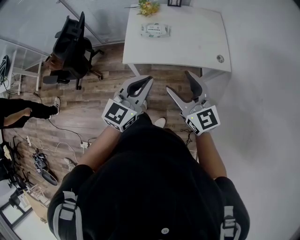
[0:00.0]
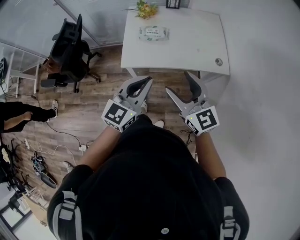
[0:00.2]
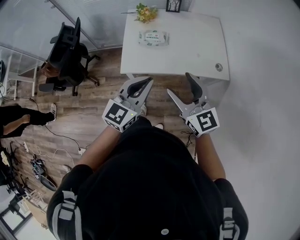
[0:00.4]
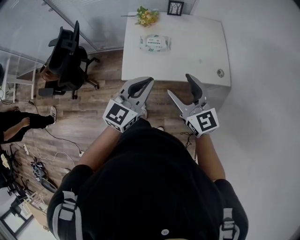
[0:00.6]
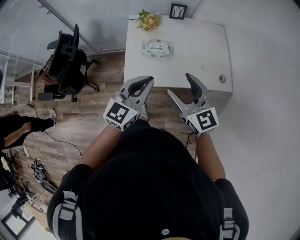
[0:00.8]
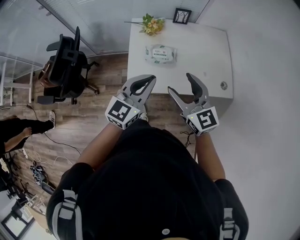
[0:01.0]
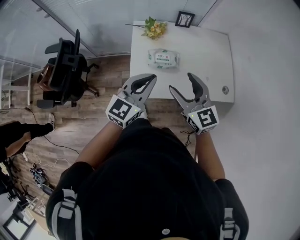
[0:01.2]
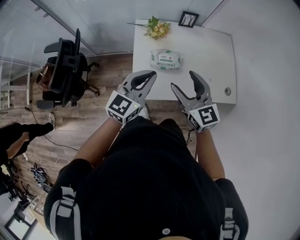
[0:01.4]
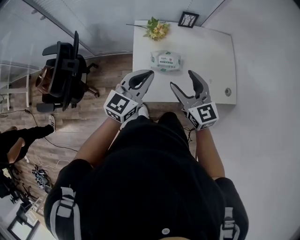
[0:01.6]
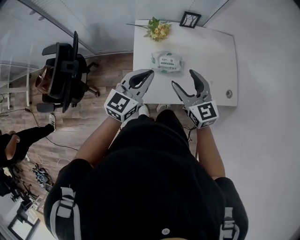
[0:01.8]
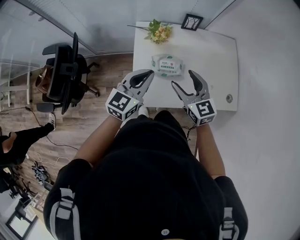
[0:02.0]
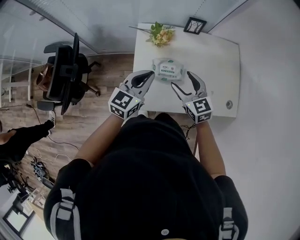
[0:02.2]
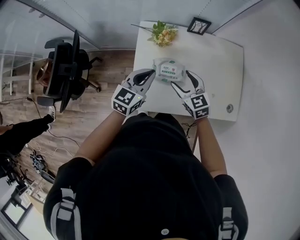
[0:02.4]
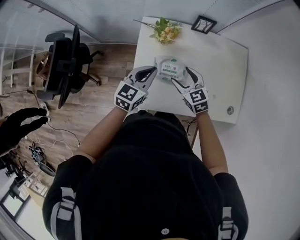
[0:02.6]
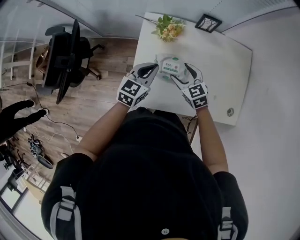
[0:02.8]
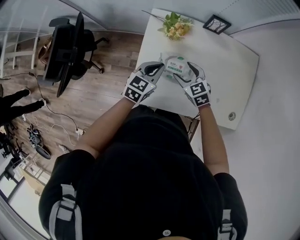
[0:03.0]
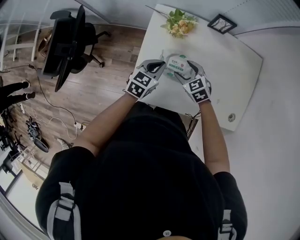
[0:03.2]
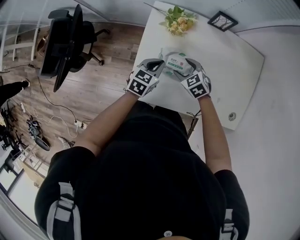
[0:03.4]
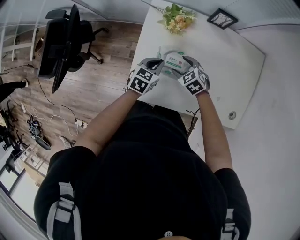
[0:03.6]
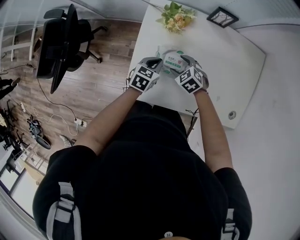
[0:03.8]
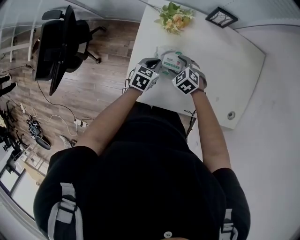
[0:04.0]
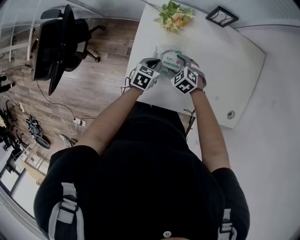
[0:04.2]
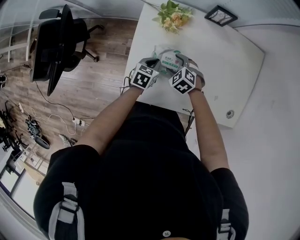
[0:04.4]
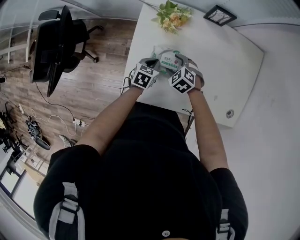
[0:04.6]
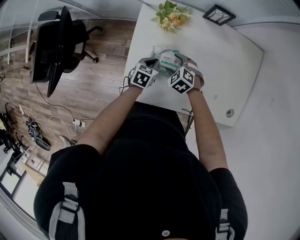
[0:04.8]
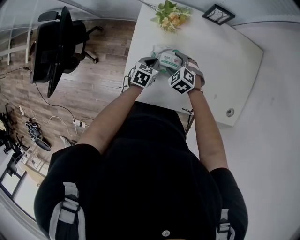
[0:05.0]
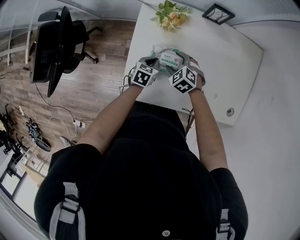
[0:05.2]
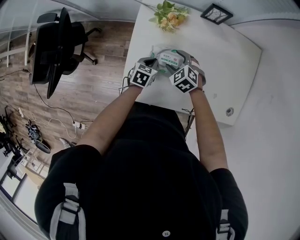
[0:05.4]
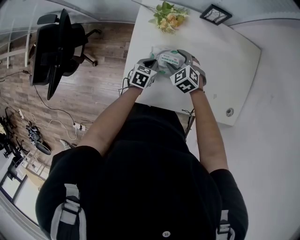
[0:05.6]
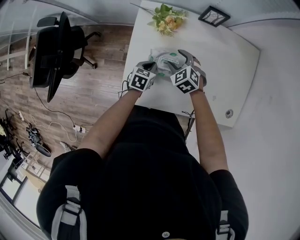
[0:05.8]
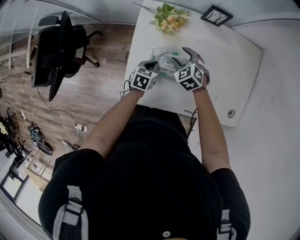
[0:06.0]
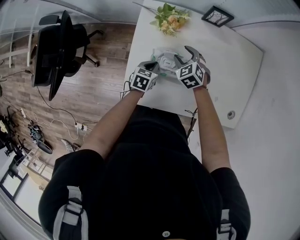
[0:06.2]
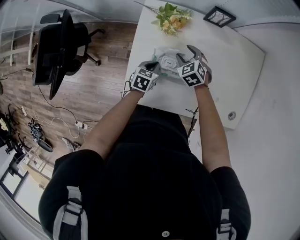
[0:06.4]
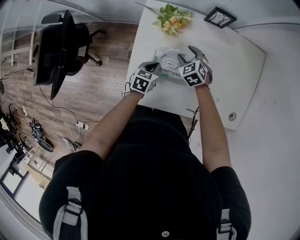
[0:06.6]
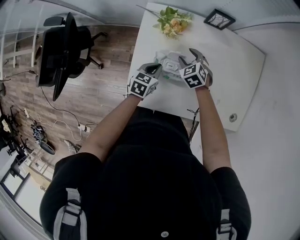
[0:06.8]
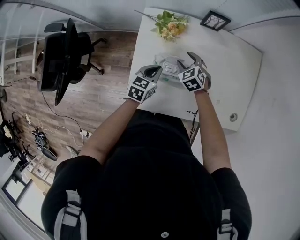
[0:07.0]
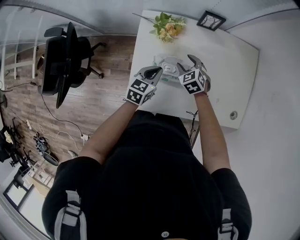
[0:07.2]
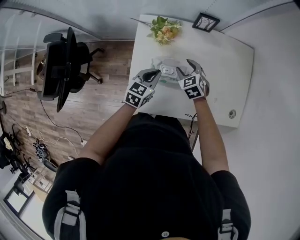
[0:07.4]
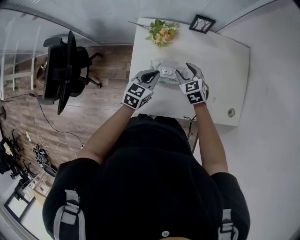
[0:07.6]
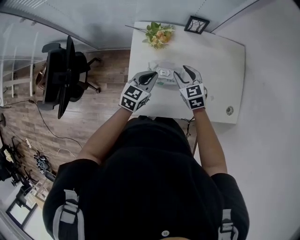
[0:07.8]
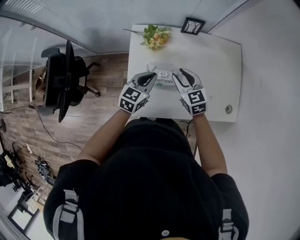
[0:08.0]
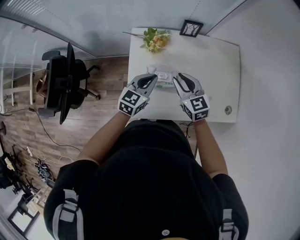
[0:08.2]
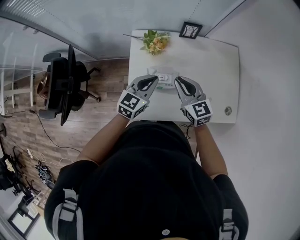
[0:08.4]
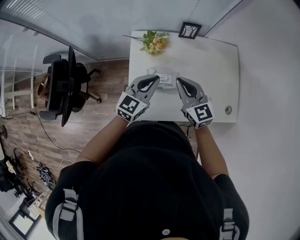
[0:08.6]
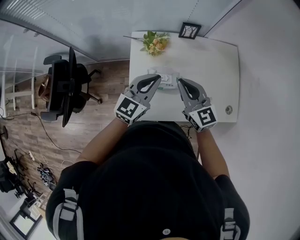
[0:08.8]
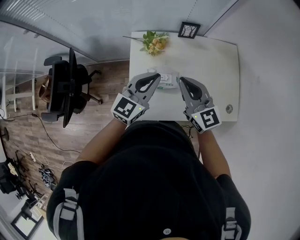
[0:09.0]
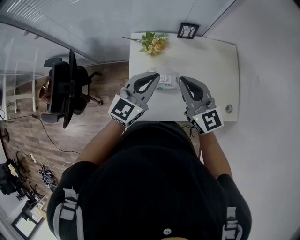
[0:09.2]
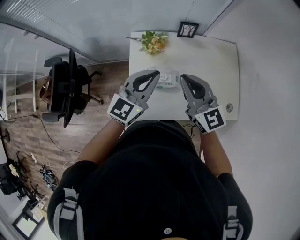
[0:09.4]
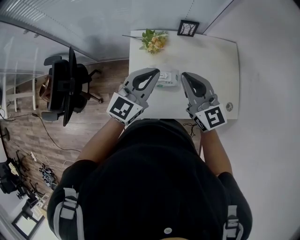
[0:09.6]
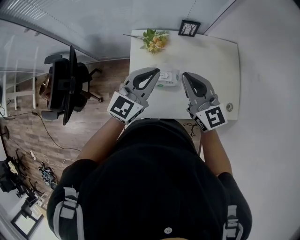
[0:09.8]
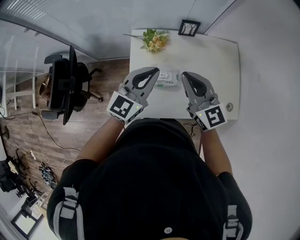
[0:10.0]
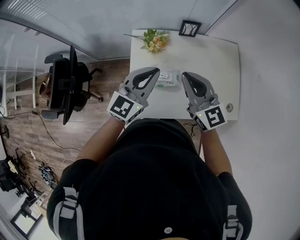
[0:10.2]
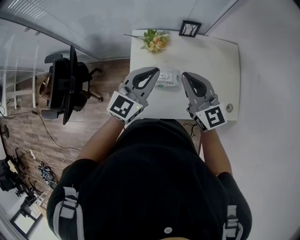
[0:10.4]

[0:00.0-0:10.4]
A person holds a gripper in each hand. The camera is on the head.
0.0 to 1.4 s: The two grippers go roughly 30 cm forward and to the left.
1.4 to 3.0 s: Both grippers move downward and forward, some 30 cm. The right gripper rotates about 30 degrees, while the left gripper swivels some 30 degrees.
3.0 to 4.4 s: Both grippers move downward, approximately 15 cm. The left gripper changes its angle by some 20 degrees. The right gripper changes its angle by some 30 degrees.
4.4 to 6.0 s: The right gripper moves forward, approximately 5 cm.
6.0 to 7.4 s: The left gripper travels upward by about 15 cm, and turns by approximately 20 degrees.
7.4 to 9.0 s: The grippers both shift upward by approximately 25 cm. The left gripper changes its angle by approximately 30 degrees; the right gripper tips its fingers upward by some 40 degrees, and closes.
9.0 to 10.4 s: The grippers move only a little.

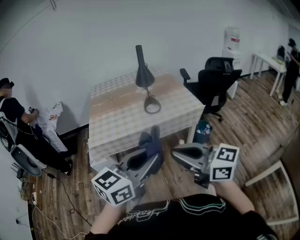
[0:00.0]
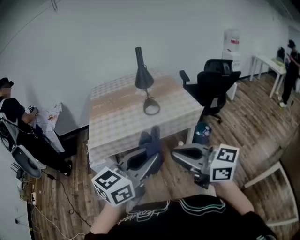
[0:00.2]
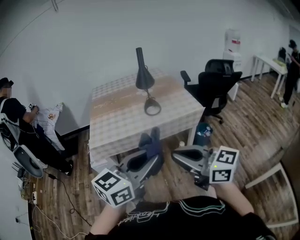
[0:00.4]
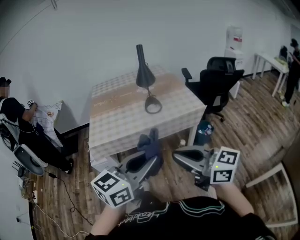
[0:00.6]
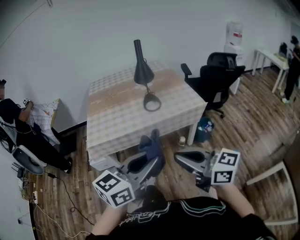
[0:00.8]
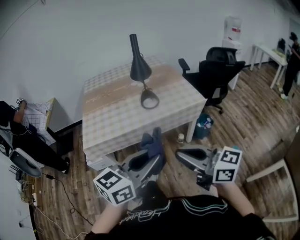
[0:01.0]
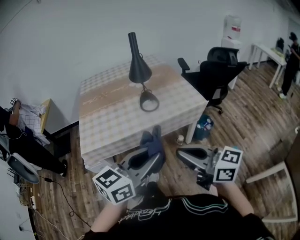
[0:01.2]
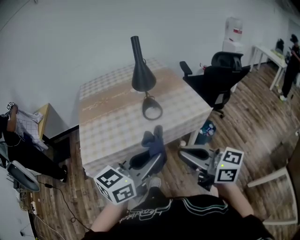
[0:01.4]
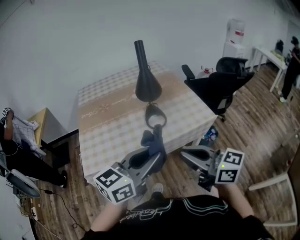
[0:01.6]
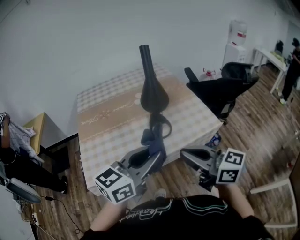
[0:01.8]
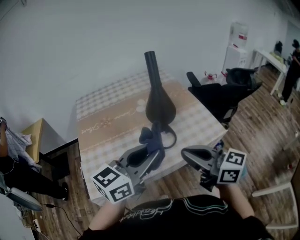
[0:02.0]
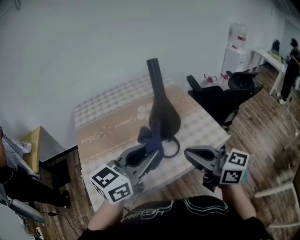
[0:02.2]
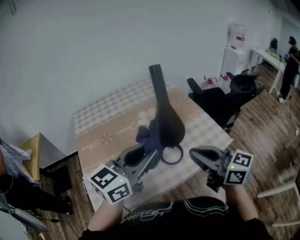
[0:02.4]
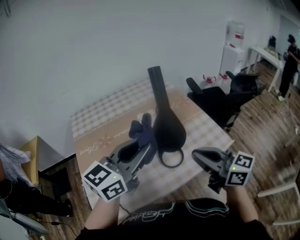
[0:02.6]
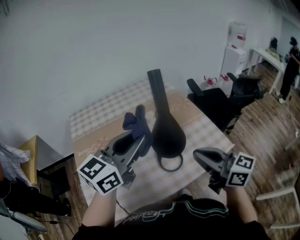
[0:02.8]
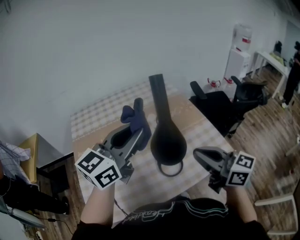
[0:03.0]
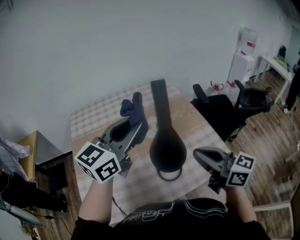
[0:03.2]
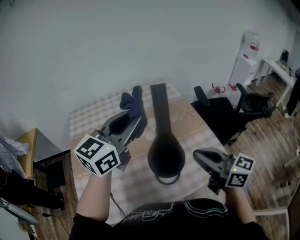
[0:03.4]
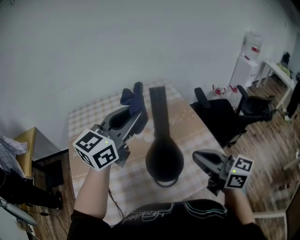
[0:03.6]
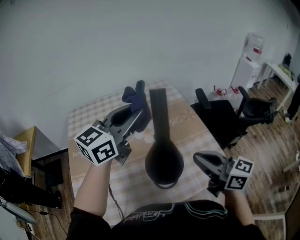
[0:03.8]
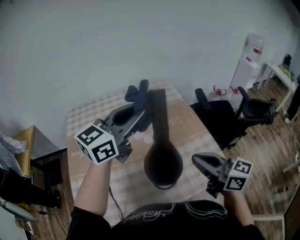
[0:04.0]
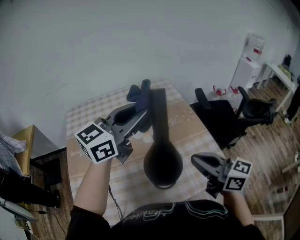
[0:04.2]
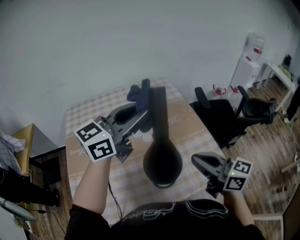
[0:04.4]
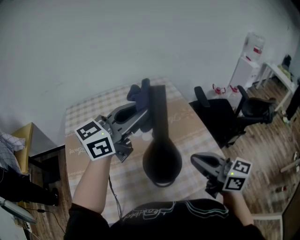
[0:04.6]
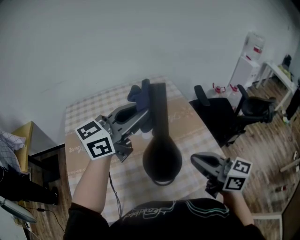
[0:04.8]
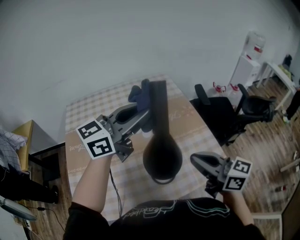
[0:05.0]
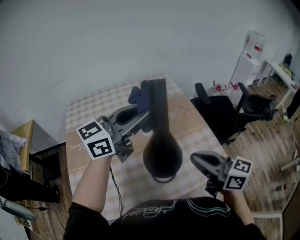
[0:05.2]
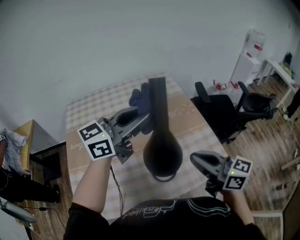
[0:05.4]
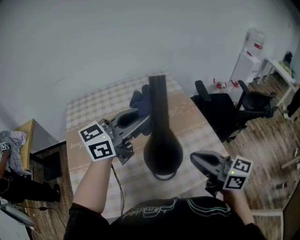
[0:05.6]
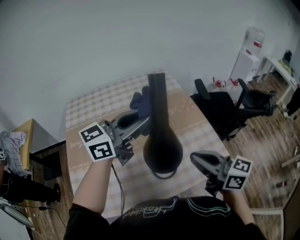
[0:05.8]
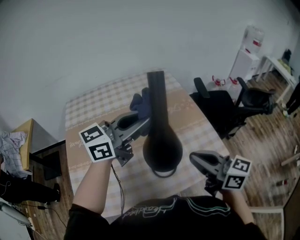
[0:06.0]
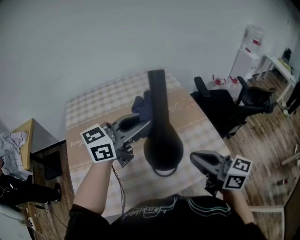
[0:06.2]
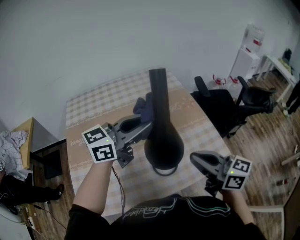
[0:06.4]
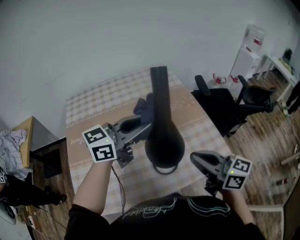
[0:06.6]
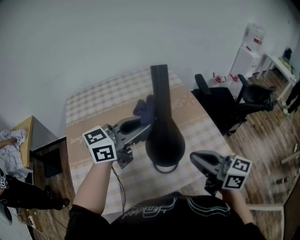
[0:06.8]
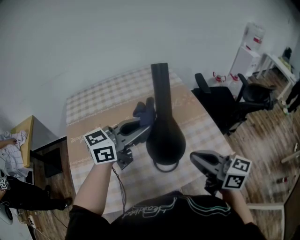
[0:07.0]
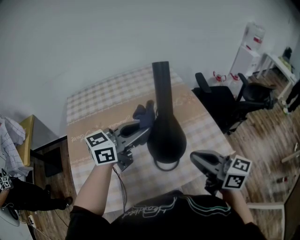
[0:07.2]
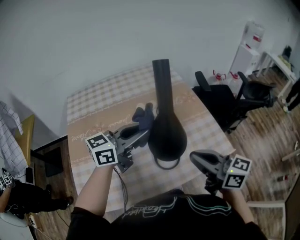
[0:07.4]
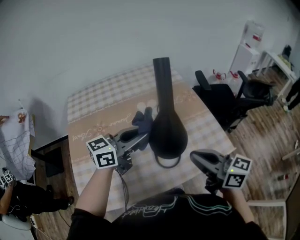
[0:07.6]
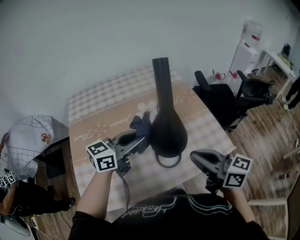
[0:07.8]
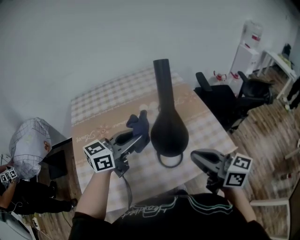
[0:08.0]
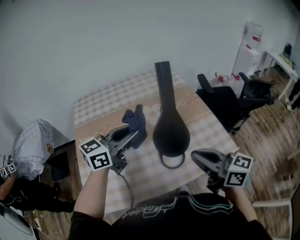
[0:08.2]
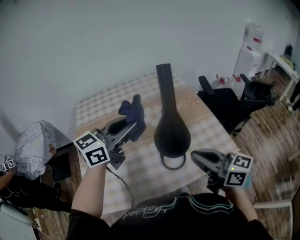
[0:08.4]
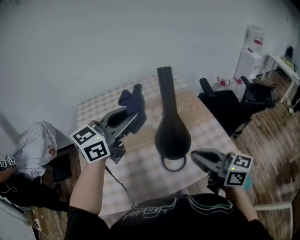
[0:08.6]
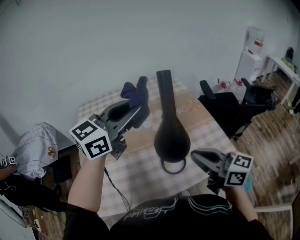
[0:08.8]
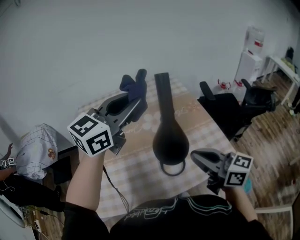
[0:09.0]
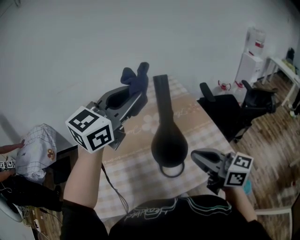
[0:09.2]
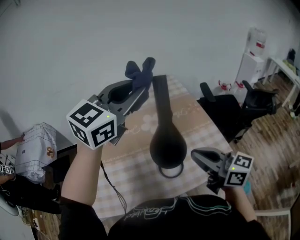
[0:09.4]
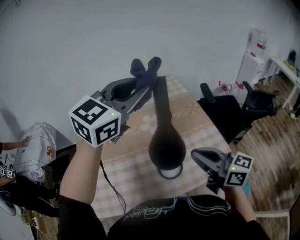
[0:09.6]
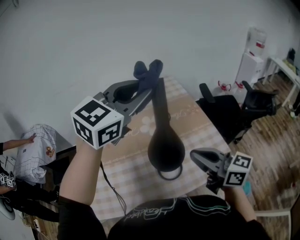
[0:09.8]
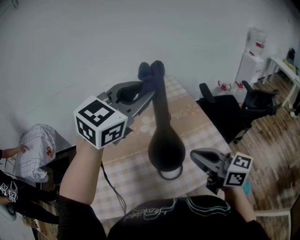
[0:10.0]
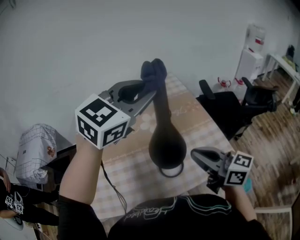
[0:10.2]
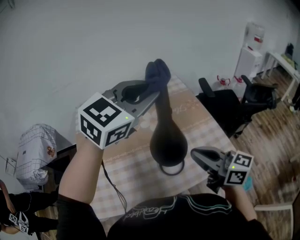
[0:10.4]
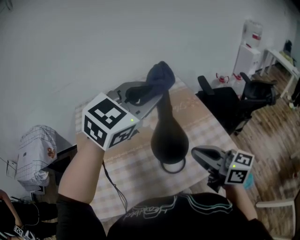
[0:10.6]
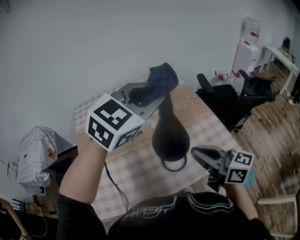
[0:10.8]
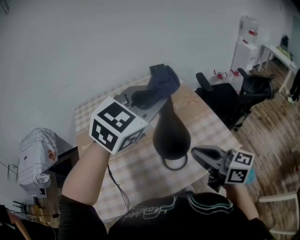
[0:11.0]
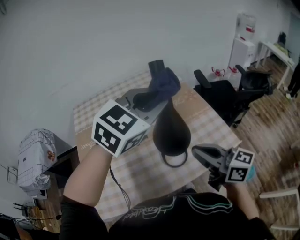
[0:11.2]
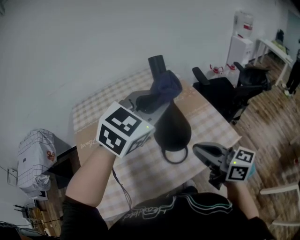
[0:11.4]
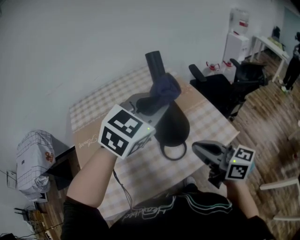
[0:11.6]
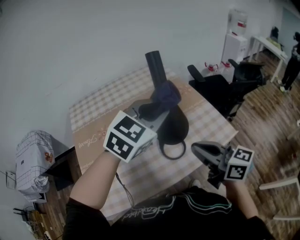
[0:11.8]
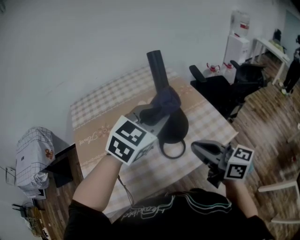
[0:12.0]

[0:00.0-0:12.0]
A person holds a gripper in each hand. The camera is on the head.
0.0 to 1.6 s: Both grippers move forward, about 25 cm.
1.6 to 3.0 s: The grippers both shift forward by about 35 cm.
3.0 to 4.4 s: The left gripper shifts roughly 10 cm forward; the right gripper travels forward by some 5 cm.
4.4 to 6.0 s: The left gripper heads downward, covering some 5 cm.
6.0 to 7.6 s: The left gripper moves downward, about 10 cm.
7.6 to 9.0 s: The left gripper heads upward, covering roughly 20 cm, and changes its angle by approximately 30 degrees.
9.0 to 10.4 s: The left gripper is displaced to the right by approximately 5 cm, and rotates about 20 degrees.
10.4 to 12.0 s: The right gripper heads backward, covering roughly 5 cm; the left gripper moves downward and backward, approximately 15 cm.

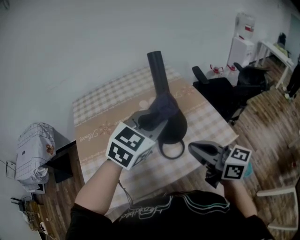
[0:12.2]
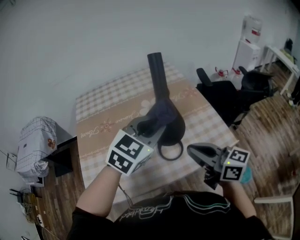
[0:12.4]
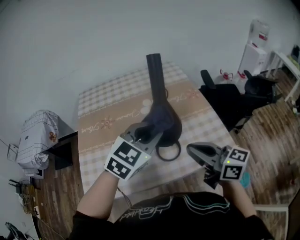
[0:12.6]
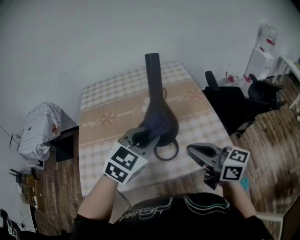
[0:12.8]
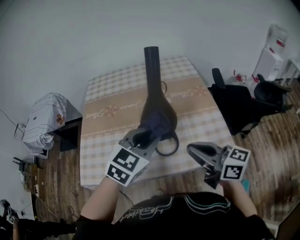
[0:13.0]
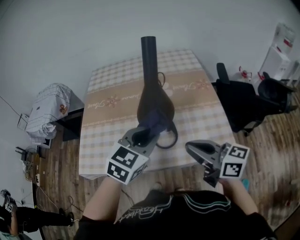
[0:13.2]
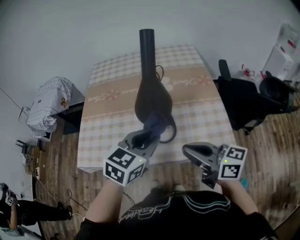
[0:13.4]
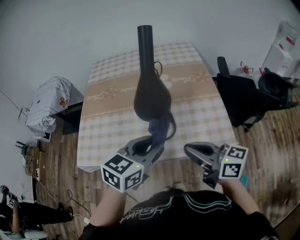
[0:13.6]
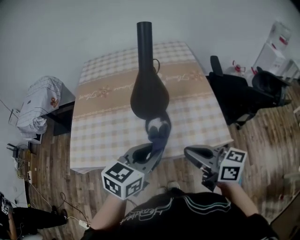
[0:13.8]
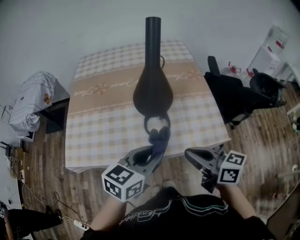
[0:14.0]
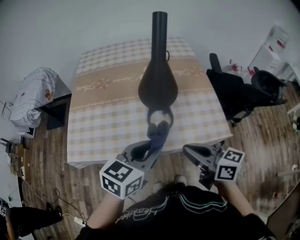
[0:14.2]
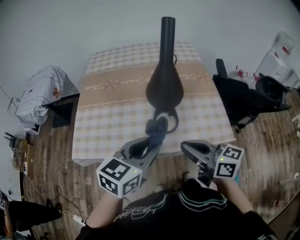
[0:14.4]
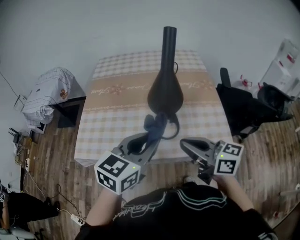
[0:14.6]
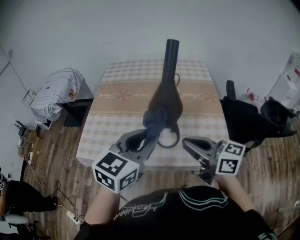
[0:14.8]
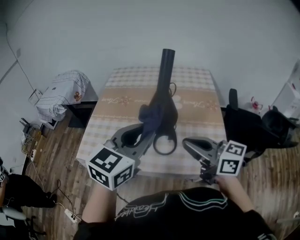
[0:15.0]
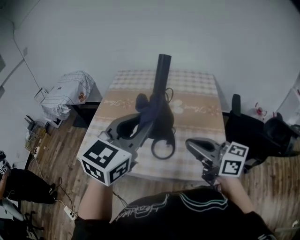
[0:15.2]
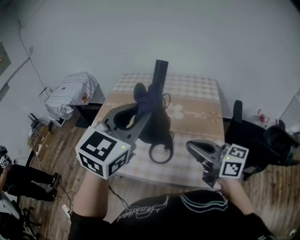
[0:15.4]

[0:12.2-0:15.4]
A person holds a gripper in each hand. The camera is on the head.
12.2 to 13.8 s: The left gripper goes about 20 cm backward and downward, and rotates approximately 40 degrees. The right gripper travels to the right, downward and backward by about 15 cm, and changes its angle by roughly 20 degrees.
13.8 to 15.4 s: The right gripper moves roughly 15 cm, and rotates some 20 degrees. Meanwhile the left gripper heads upward, covering some 20 cm, and swivels approximately 40 degrees.
